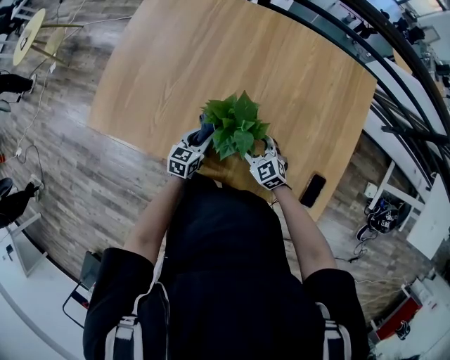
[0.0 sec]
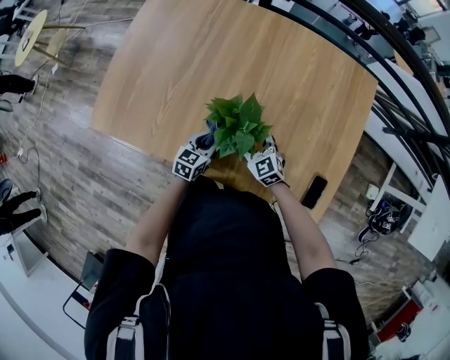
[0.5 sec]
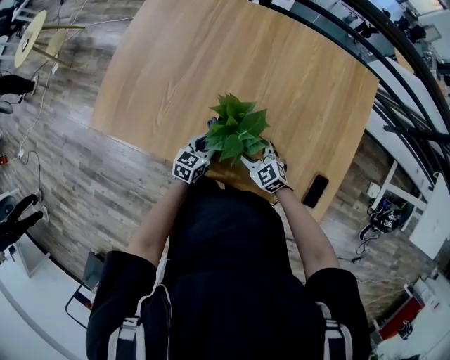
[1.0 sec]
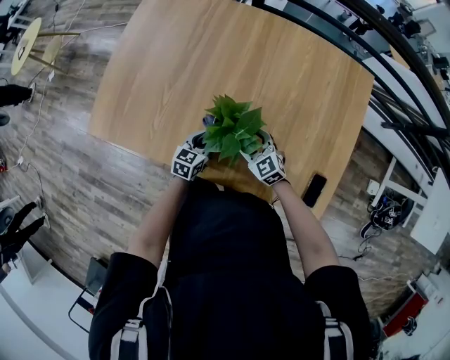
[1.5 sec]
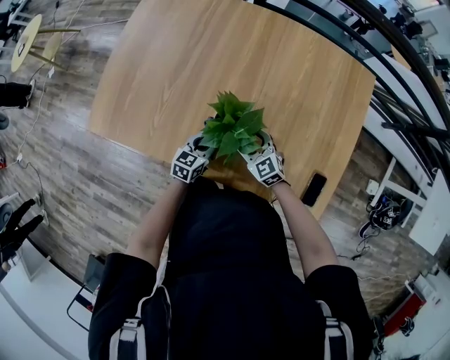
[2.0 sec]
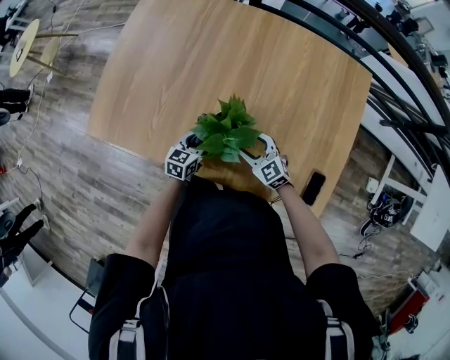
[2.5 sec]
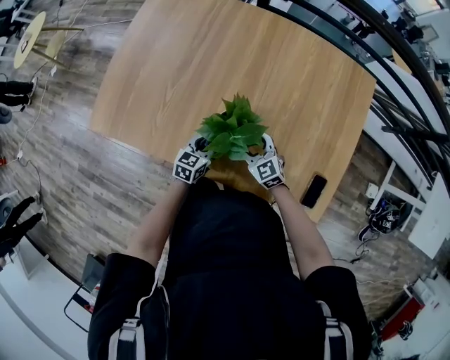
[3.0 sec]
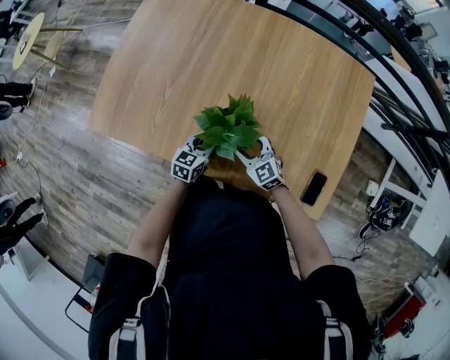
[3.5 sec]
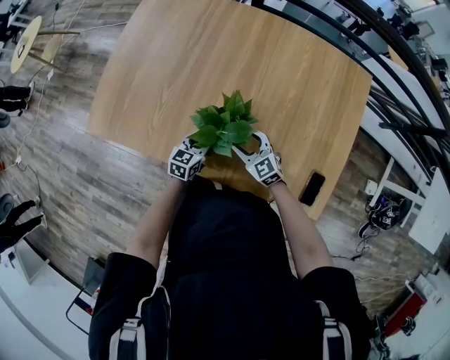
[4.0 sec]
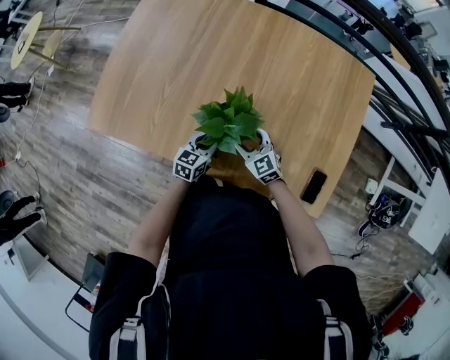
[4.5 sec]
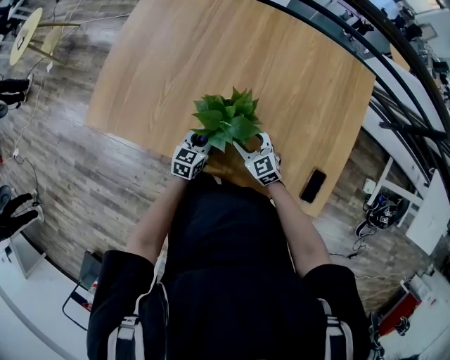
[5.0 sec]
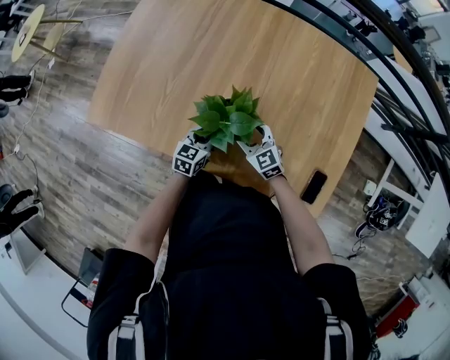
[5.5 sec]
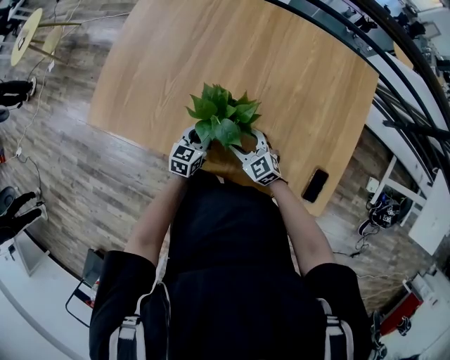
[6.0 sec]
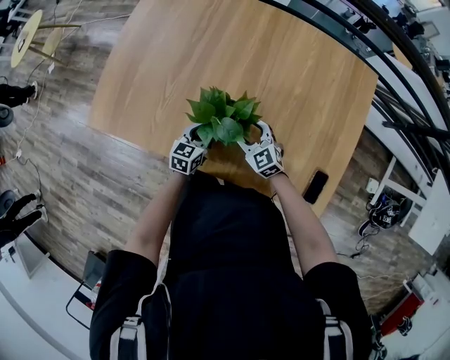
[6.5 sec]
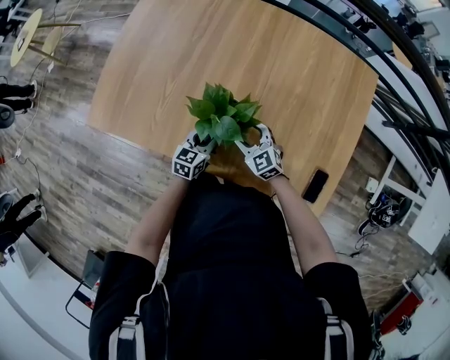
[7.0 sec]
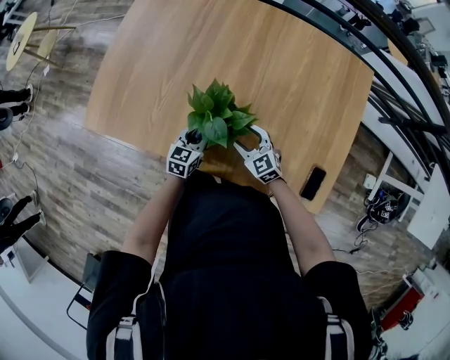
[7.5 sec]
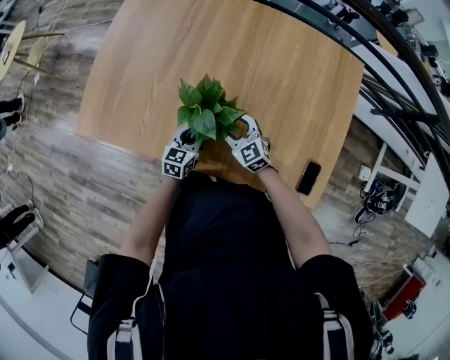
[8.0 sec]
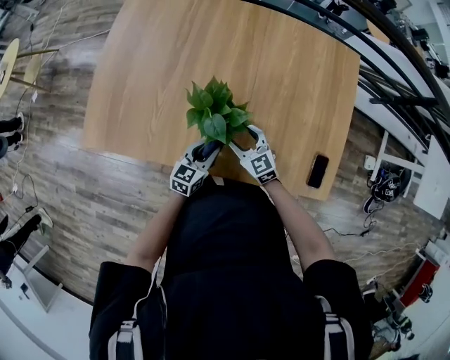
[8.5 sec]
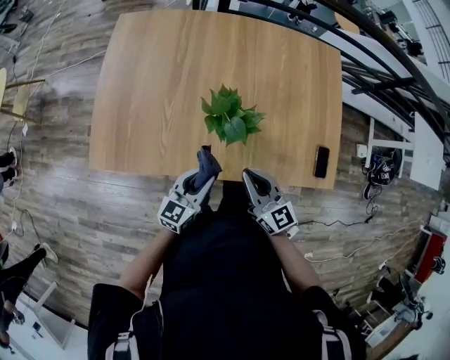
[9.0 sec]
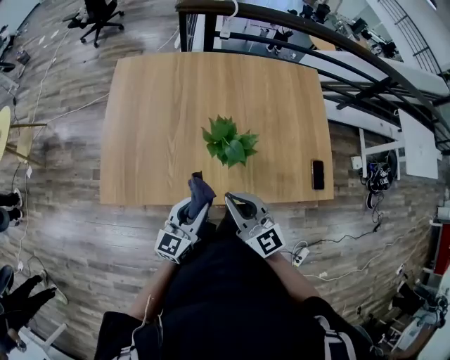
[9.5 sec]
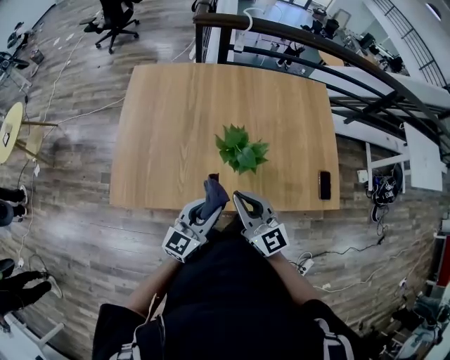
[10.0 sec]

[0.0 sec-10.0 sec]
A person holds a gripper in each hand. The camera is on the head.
0.0 sec to 6.0 sec: The grippers make only small movements.
6.0 sec to 8.0 sec: The grippers stay close to where they were, moving slightly.
8.0 sec to 10.0 sec: Both grippers move upward and backward, approximately 25 cm. The left gripper swivels about 40 degrees, while the right gripper swivels some 40 degrees, and closes up.

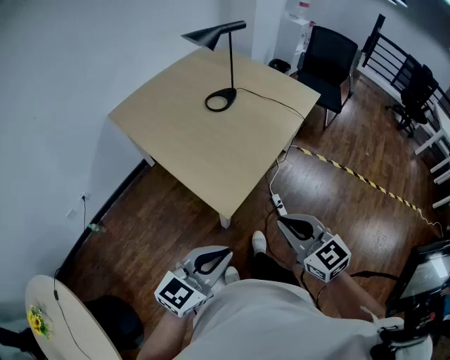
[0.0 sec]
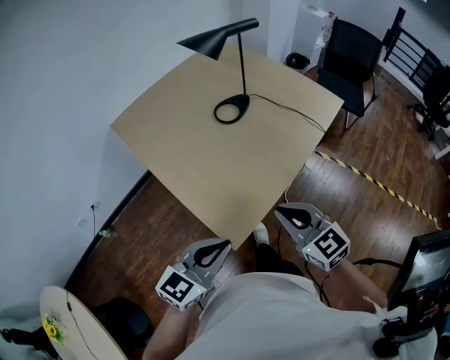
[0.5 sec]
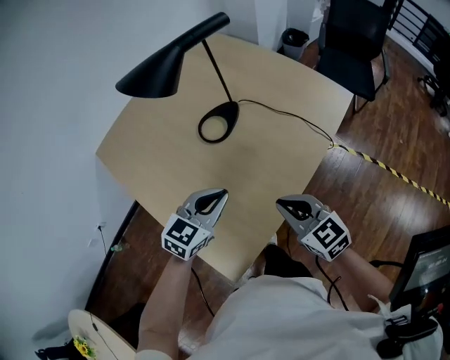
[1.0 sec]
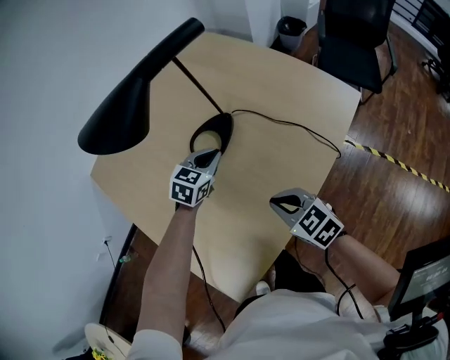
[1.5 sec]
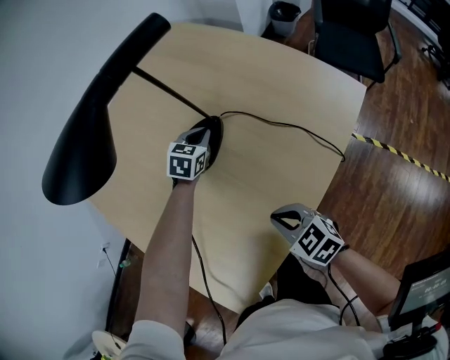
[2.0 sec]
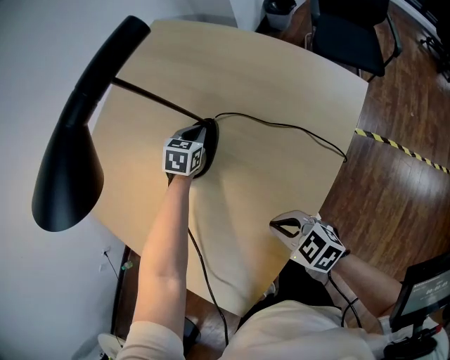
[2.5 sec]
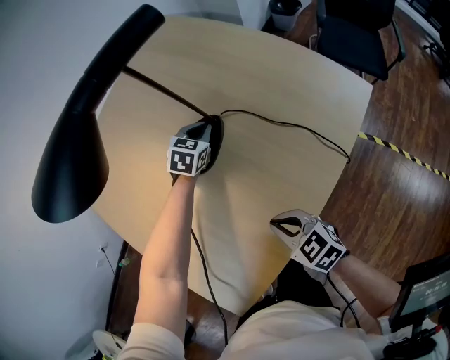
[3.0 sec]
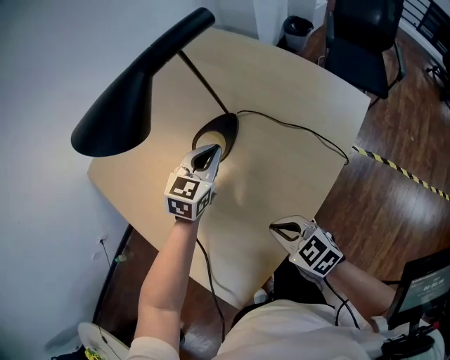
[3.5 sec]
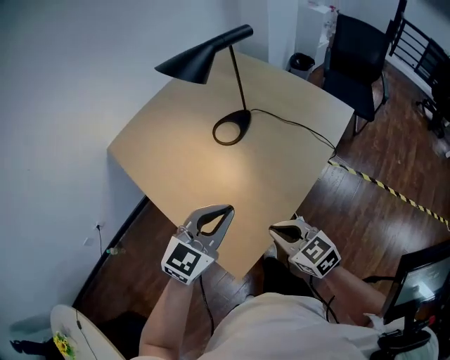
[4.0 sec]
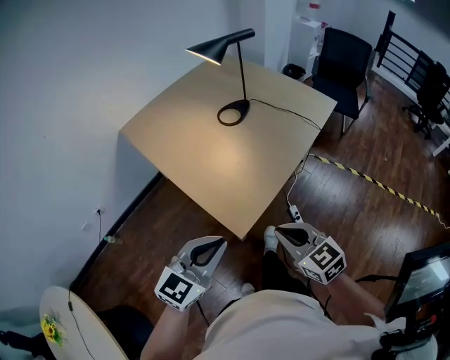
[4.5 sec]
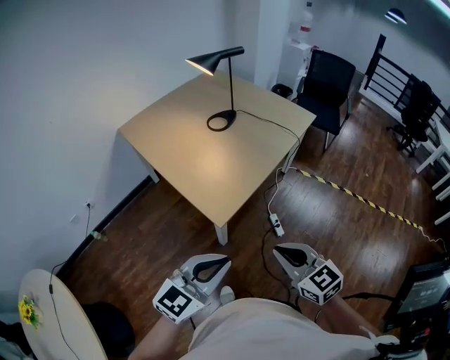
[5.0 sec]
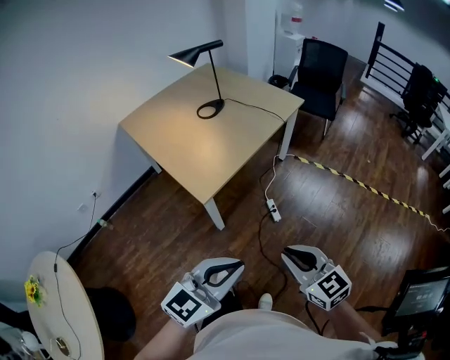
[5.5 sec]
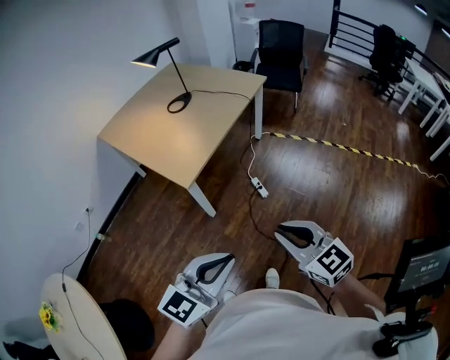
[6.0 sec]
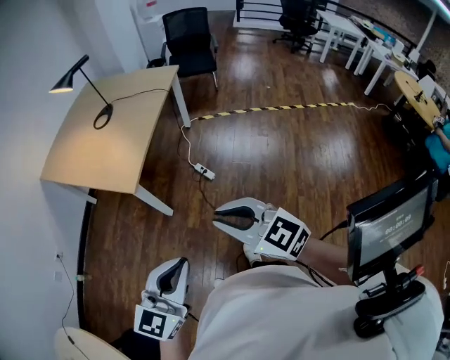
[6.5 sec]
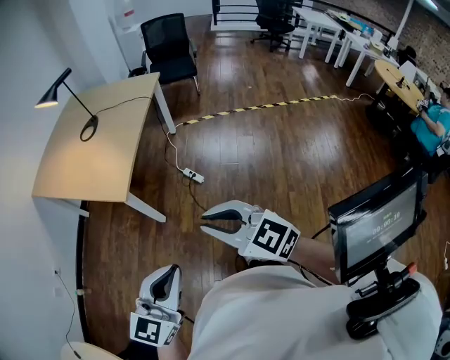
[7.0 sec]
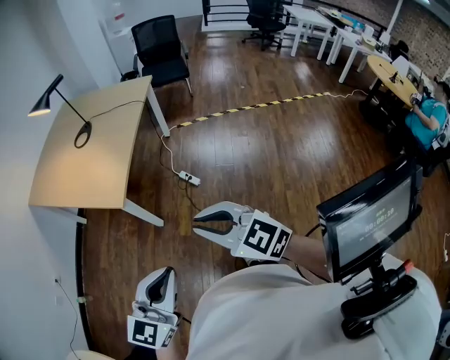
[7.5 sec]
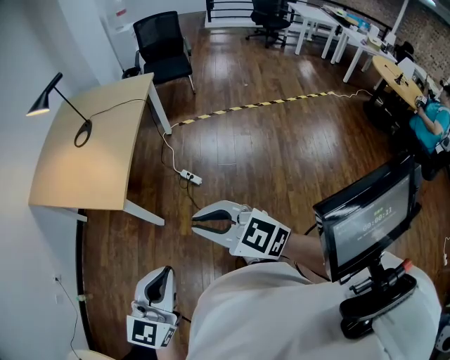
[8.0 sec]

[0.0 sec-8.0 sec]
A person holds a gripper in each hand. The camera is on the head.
0.0 sec to 2.0 sec: The two grippers travel together, forward, roughly 60 cm. The left gripper points its fingers roughly 30 degrees further downward. The right gripper goes approximately 20 cm downward, and rotates about 30 degrees.
2.0 sec to 4.0 sec: The right gripper travels backward, to the left and upward by roughly 20 cm. The left gripper travels backward and upward by approximately 50 cm, and swivels approximately 30 degrees.
4.0 sec to 6.0 sec: The pair of grippers is taken backward, some 50 cm. The right gripper turns by some 20 degrees.
6.0 sec to 8.0 sec: Both grippers move to the left, some 5 cm.

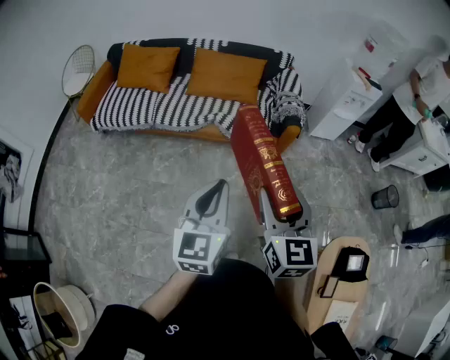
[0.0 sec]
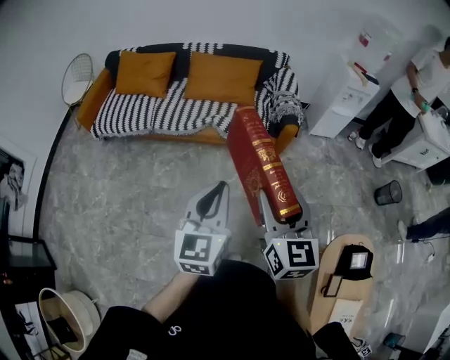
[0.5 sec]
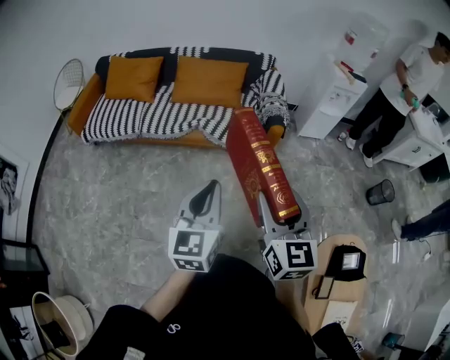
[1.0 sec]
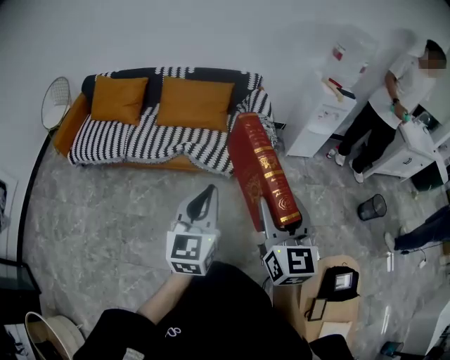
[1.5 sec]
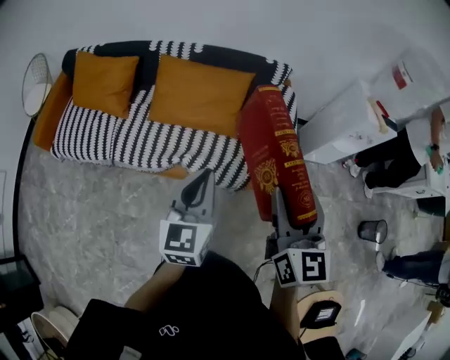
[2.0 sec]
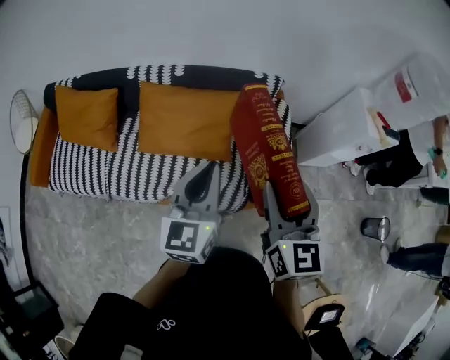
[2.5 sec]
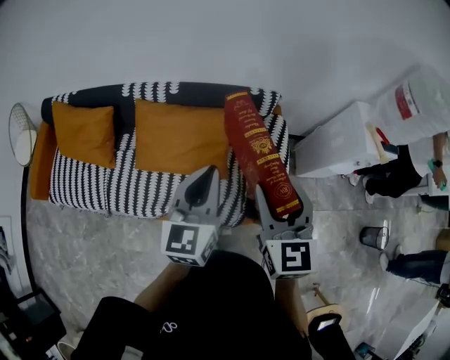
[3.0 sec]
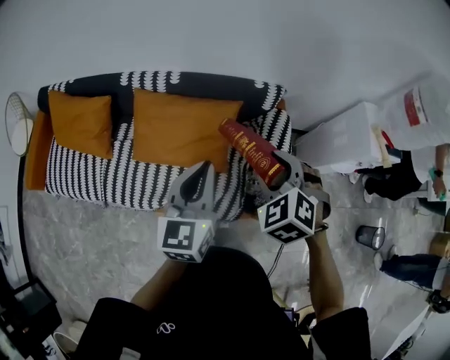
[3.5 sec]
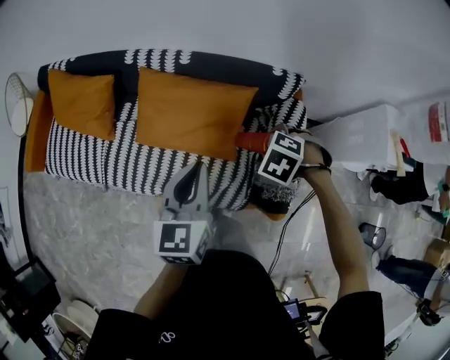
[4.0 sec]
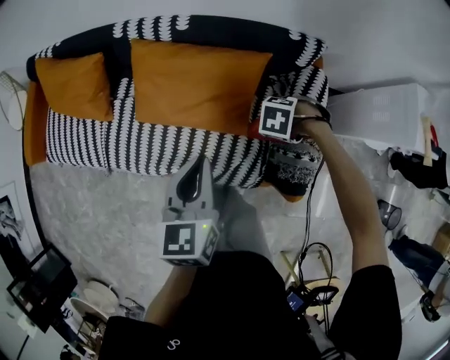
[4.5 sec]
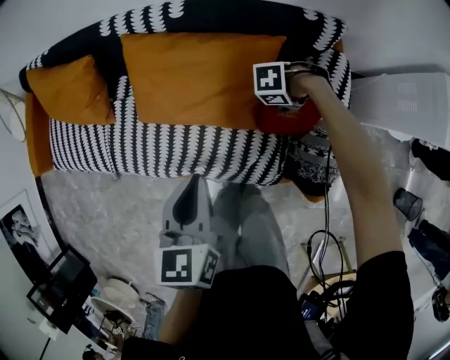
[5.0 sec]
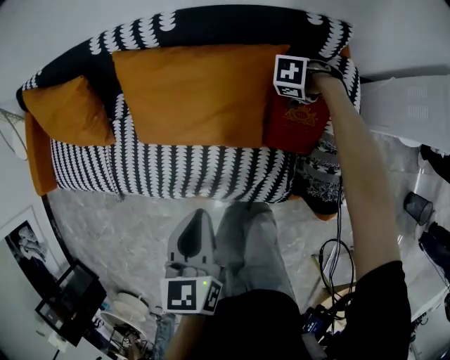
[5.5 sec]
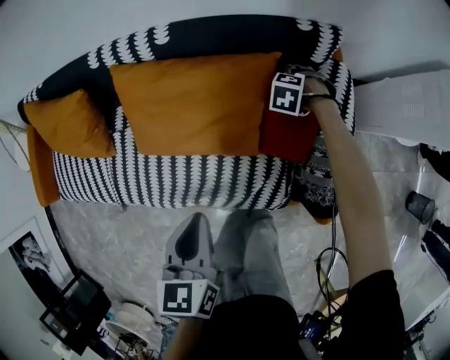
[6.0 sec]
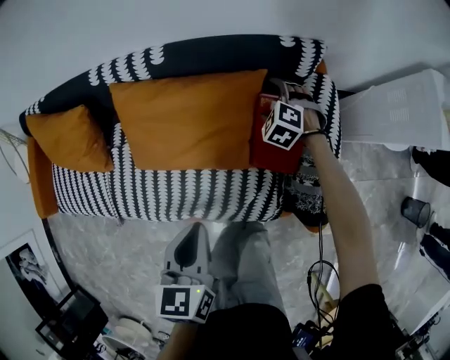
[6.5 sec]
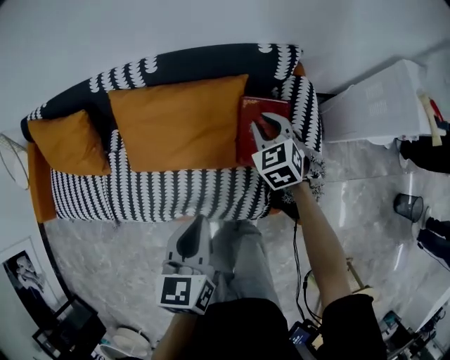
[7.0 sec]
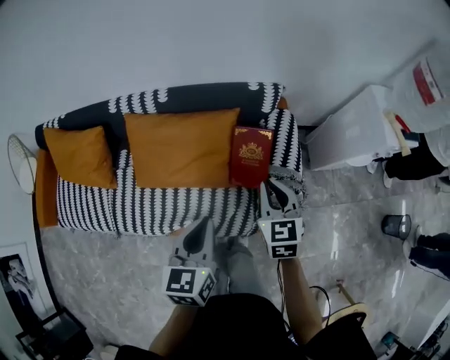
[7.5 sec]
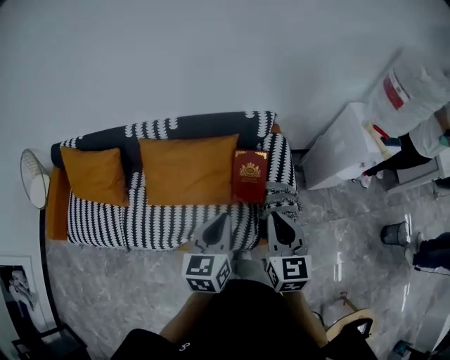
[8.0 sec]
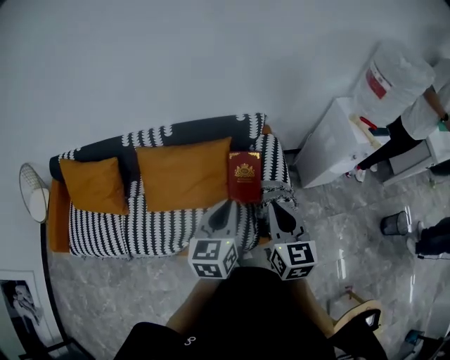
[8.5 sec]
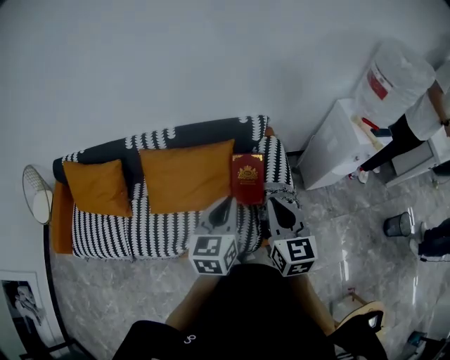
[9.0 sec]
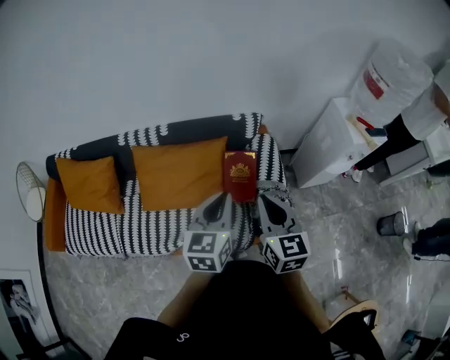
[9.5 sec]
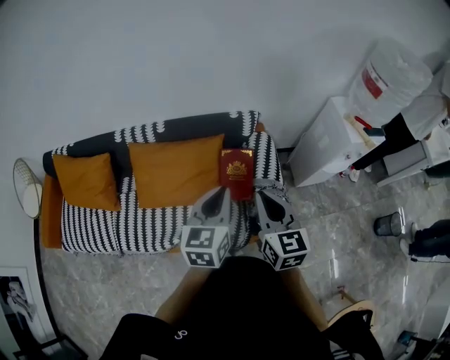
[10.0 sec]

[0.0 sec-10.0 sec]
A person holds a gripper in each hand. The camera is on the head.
0.0 sec to 2.0 sec: The pair of grippers is taken forward, about 50 cm.
2.0 sec to 4.0 sec: The left gripper moves approximately 30 cm. The right gripper moves about 40 cm, and angles its fingers downward, by about 80 degrees.
4.0 sec to 6.0 sec: The left gripper is displaced downward by roughly 15 cm. Meanwhile the right gripper goes about 30 cm downward, and opens up.
6.0 sec to 8.0 sec: The left gripper goes some 15 cm upward, and turns by roughly 20 degrees. The right gripper shifts approximately 40 cm upward, tips its fingers upward by roughly 70 degrees, and closes up.
8.0 sec to 10.0 sec: The left gripper changes place by some 5 cm.
